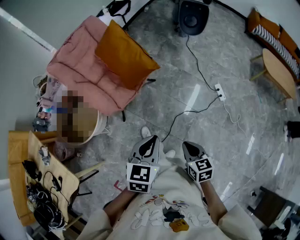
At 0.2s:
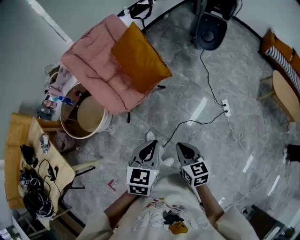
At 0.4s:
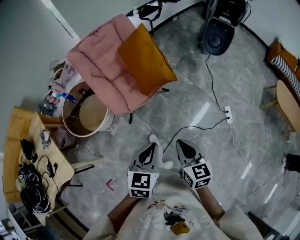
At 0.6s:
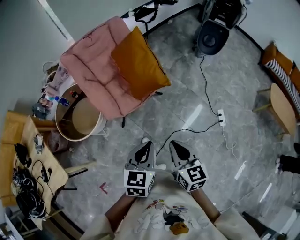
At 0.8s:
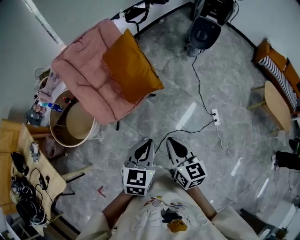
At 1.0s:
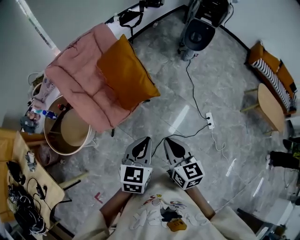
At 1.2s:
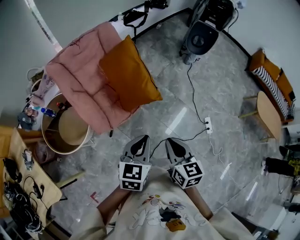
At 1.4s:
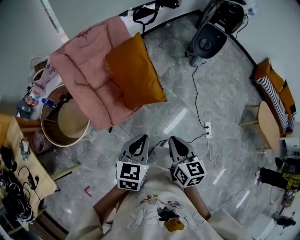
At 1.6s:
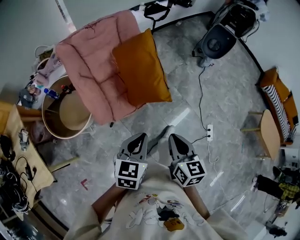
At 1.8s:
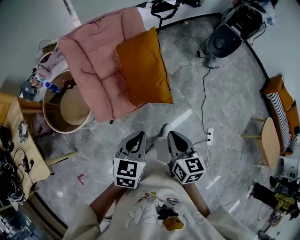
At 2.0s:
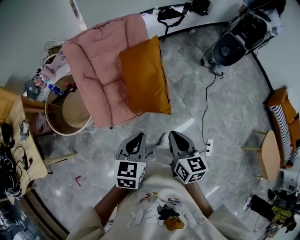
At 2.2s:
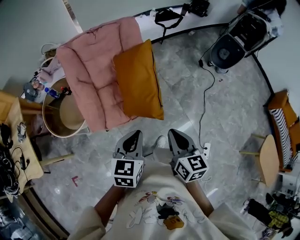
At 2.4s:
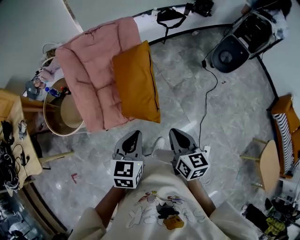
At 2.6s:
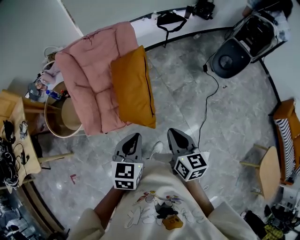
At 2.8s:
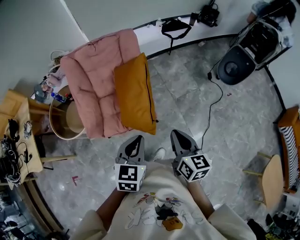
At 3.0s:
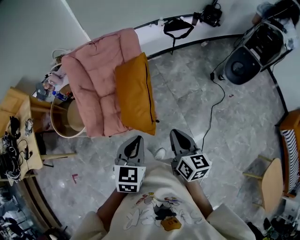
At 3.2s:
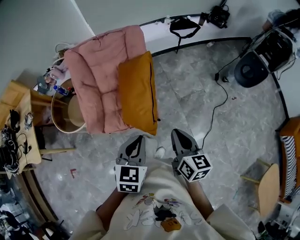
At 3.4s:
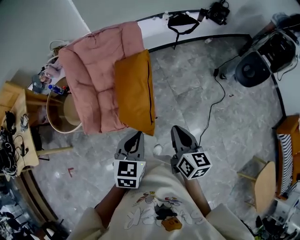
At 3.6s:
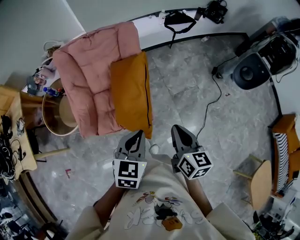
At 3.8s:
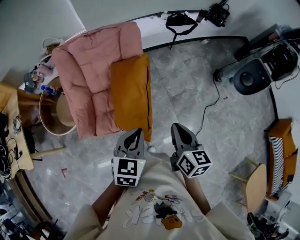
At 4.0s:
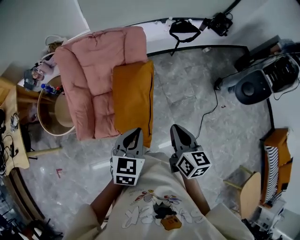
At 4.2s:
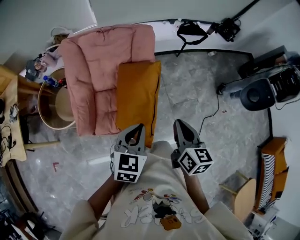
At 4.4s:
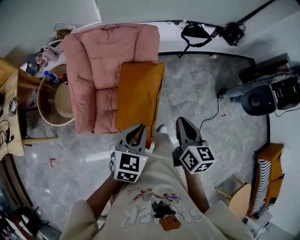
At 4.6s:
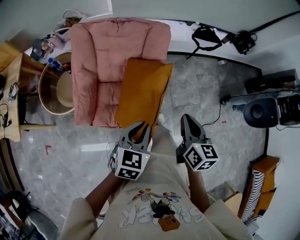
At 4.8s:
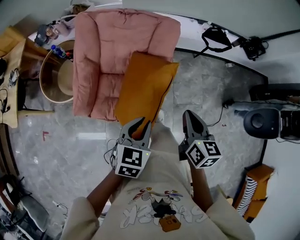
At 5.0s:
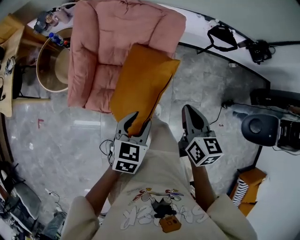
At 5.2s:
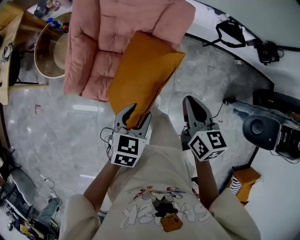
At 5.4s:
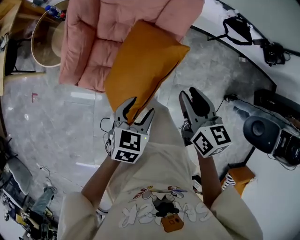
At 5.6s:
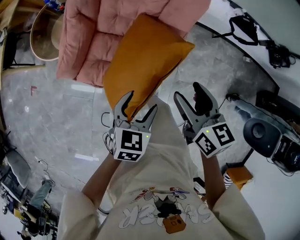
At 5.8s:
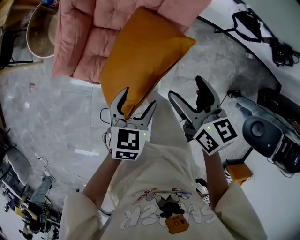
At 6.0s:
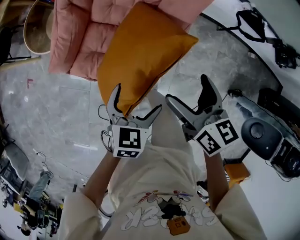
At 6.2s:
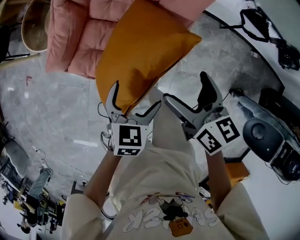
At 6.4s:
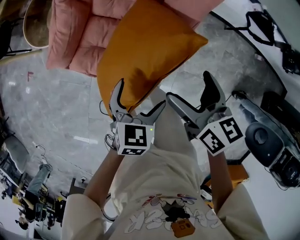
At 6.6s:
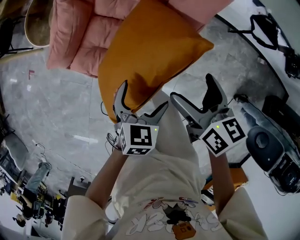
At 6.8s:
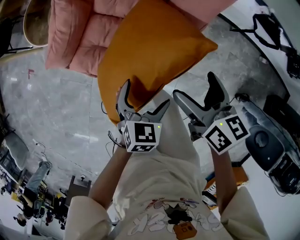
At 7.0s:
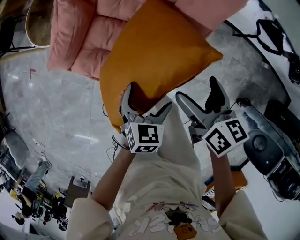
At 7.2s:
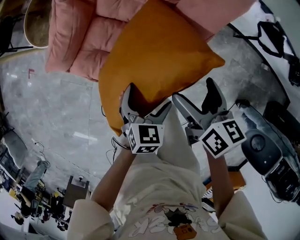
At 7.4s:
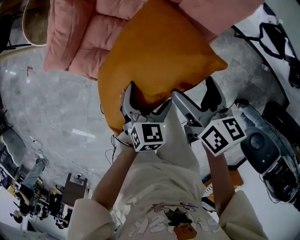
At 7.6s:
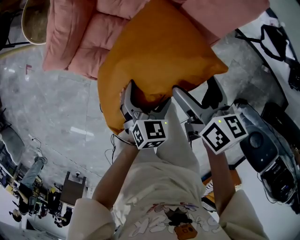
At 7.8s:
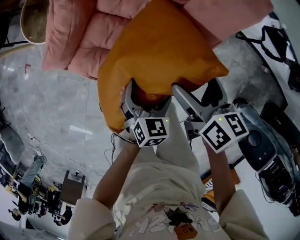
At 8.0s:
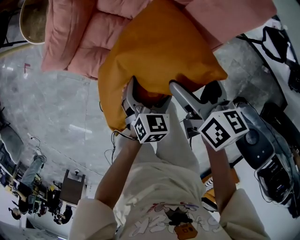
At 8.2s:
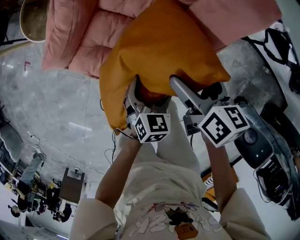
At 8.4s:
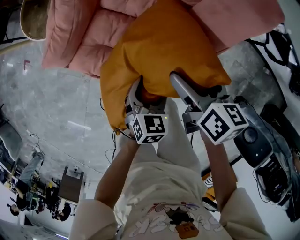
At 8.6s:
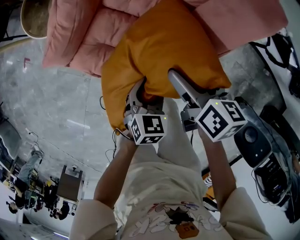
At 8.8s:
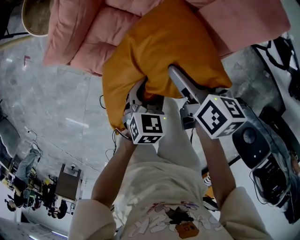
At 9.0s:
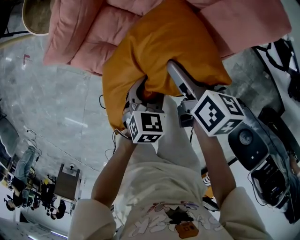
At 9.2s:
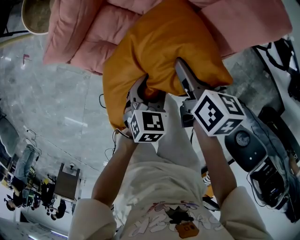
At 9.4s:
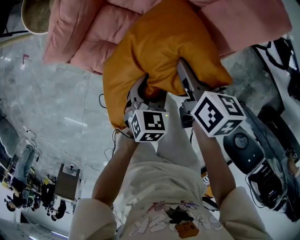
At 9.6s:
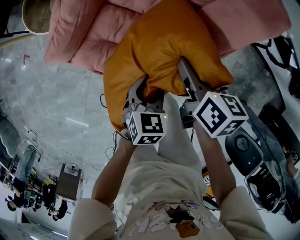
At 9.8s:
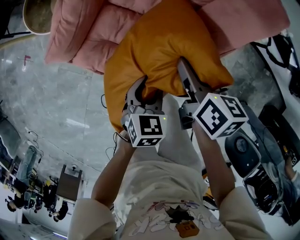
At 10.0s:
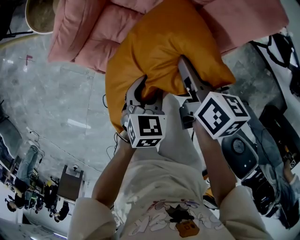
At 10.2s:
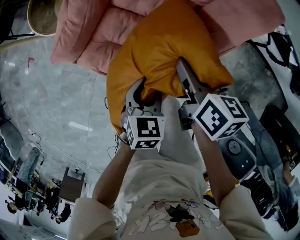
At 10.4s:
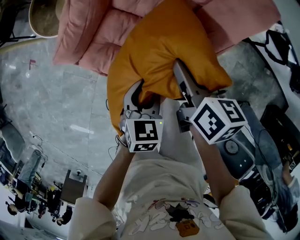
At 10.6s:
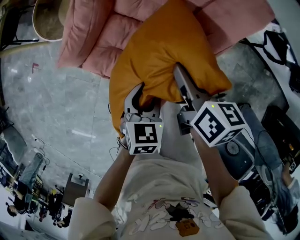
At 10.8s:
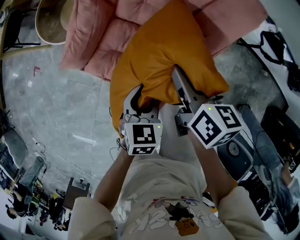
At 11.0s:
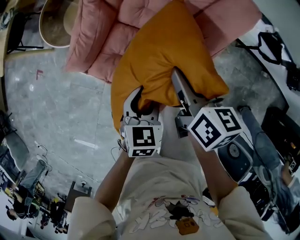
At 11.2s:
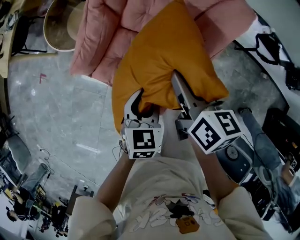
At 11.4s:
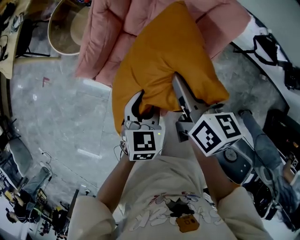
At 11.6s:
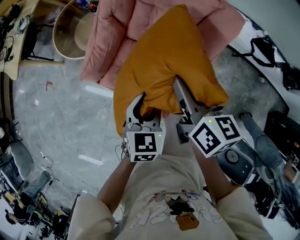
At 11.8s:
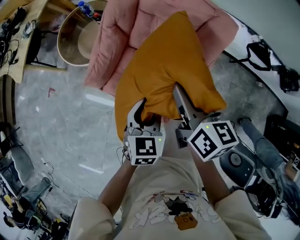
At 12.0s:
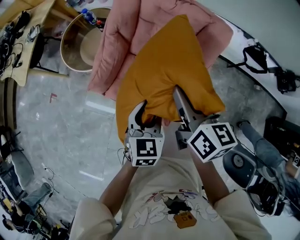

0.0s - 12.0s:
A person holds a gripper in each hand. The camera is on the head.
0.0s - 1.6s: The right gripper shifts approximately 30 cm forward and upward; the left gripper moves forward, roughly 25 cm.
1.6s - 3.0s: The right gripper goes approximately 30 cm forward and to the right, and rotates approximately 20 degrees. The left gripper moves to the right and forward, about 25 cm, and swivels approximately 30 degrees.
3.0s - 4.4s: The two grippers go about 15 cm forward.
4.4s - 6.0s: The left gripper goes about 20 cm downward, changes its angle by about 30 degrees, and opens up, while the right gripper changes place by roughly 20 cm, changes its angle by approximately 40 degrees, and opens its fingers.
6.0s - 7.6s: The right gripper shifts some 15 cm downward and forward. Meanwhile the left gripper shifts approximately 15 cm downward.
7.6s - 9.0s: The right gripper shifts approximately 10 cm forward, to the left and downward. Meanwhile the left gripper shifts by approximately 5 cm, and closes up.
9.0s - 10.4s: Both grippers travel together upward, approximately 5 cm. The right gripper closes up.
10.4s - 12.0s: The right gripper shifts about 20 cm upward. The left gripper shifts about 20 cm upward and to the left.

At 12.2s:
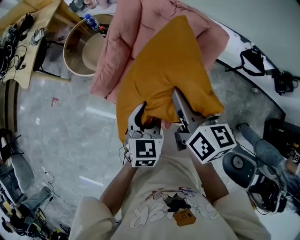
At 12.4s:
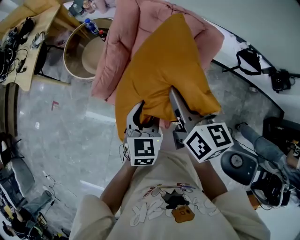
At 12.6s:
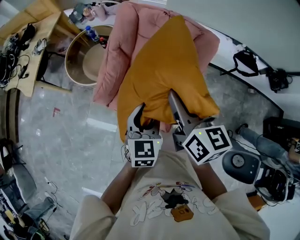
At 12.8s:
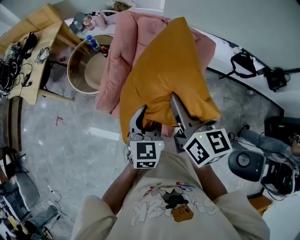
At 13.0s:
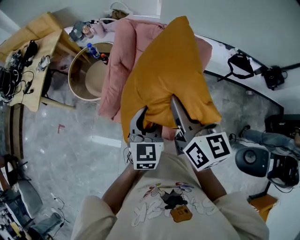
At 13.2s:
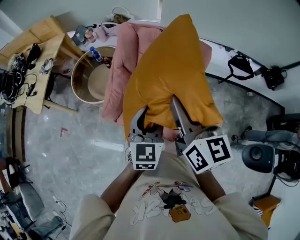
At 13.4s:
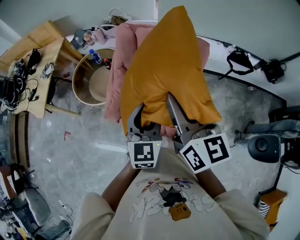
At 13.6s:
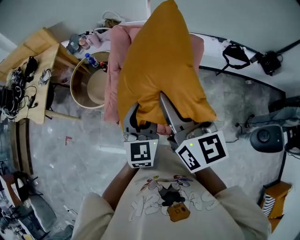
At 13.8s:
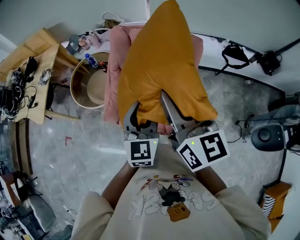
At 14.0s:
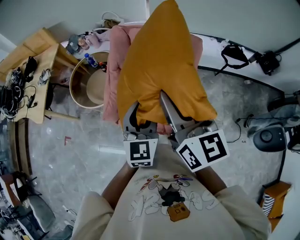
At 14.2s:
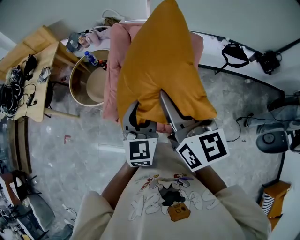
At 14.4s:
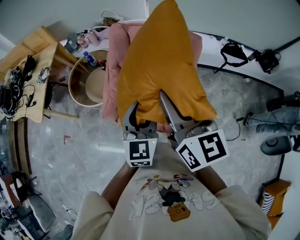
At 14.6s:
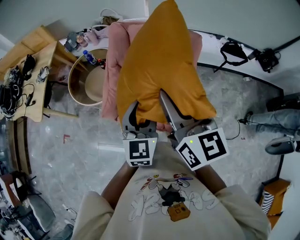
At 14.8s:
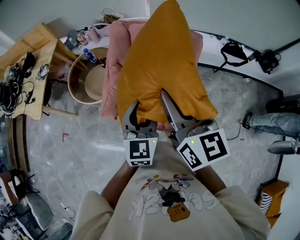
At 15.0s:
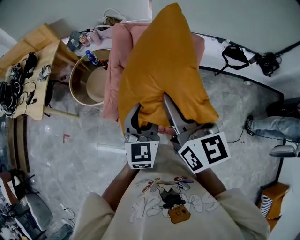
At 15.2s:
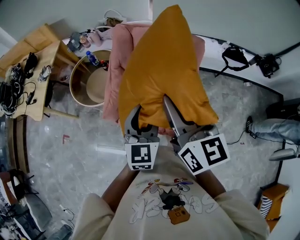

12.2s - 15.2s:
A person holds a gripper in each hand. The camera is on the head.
12.2s - 13.8s: The right gripper goes about 20 cm upward and backward, and rotates roughly 30 degrees. Meanwhile the left gripper moves upward, some 15 cm, and swivels approximately 20 degrees.
13.8s - 15.2s: The grippers make only small movements.

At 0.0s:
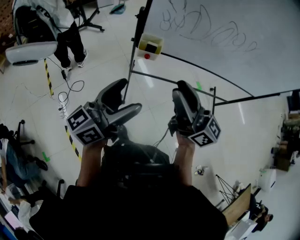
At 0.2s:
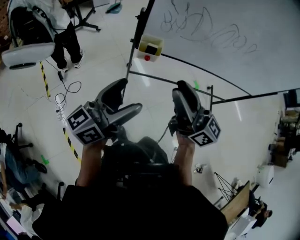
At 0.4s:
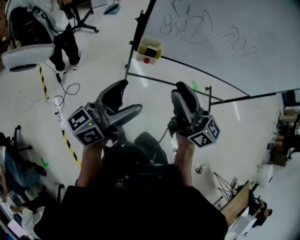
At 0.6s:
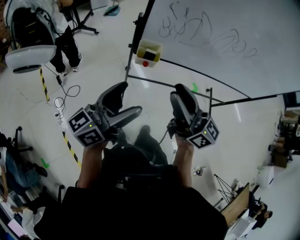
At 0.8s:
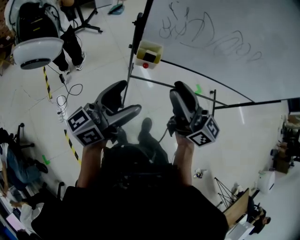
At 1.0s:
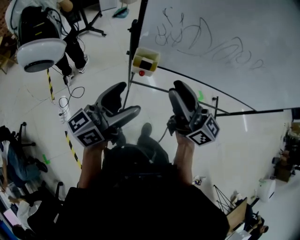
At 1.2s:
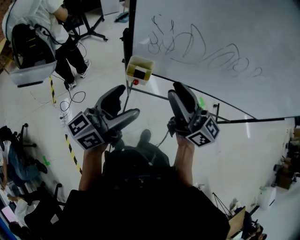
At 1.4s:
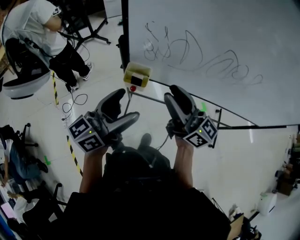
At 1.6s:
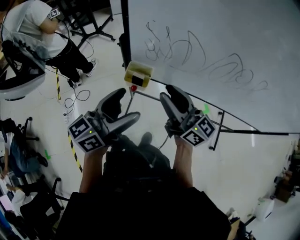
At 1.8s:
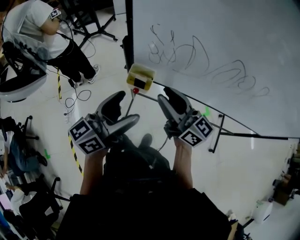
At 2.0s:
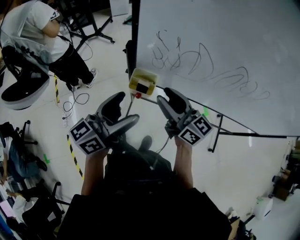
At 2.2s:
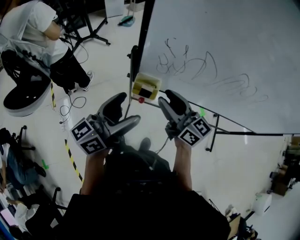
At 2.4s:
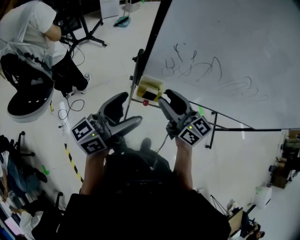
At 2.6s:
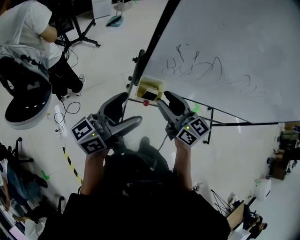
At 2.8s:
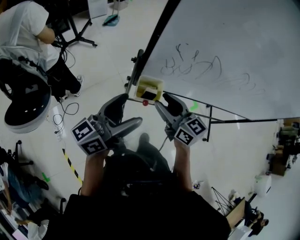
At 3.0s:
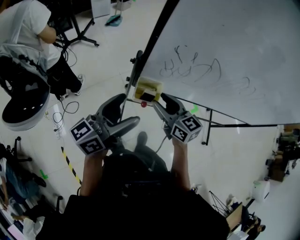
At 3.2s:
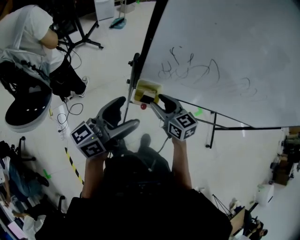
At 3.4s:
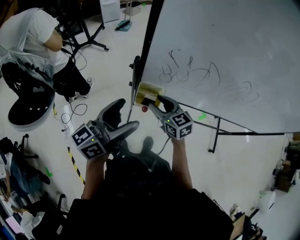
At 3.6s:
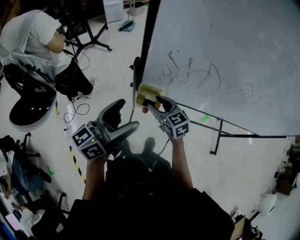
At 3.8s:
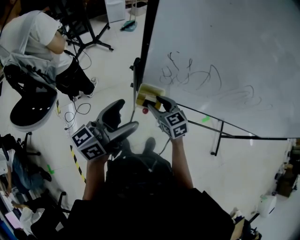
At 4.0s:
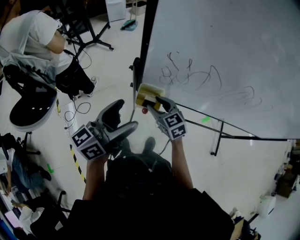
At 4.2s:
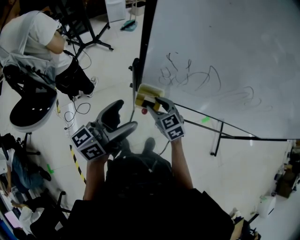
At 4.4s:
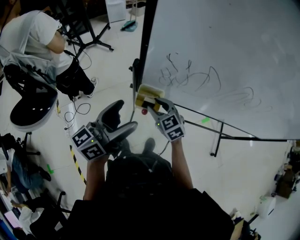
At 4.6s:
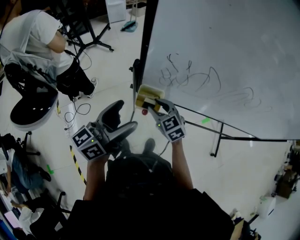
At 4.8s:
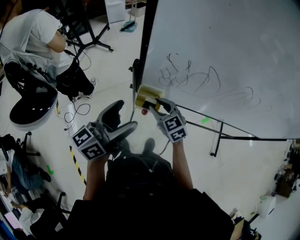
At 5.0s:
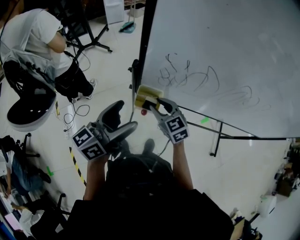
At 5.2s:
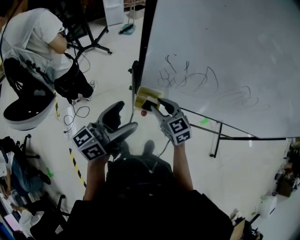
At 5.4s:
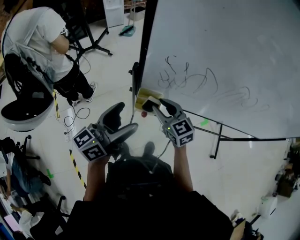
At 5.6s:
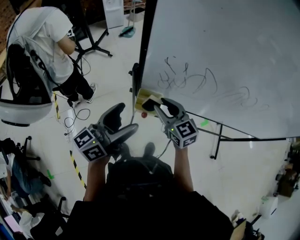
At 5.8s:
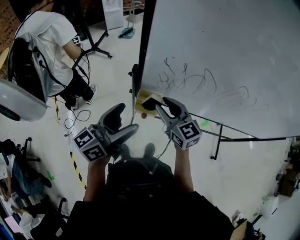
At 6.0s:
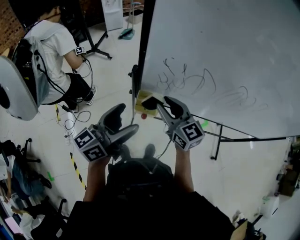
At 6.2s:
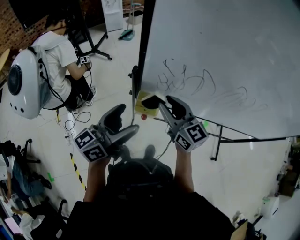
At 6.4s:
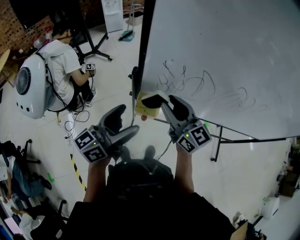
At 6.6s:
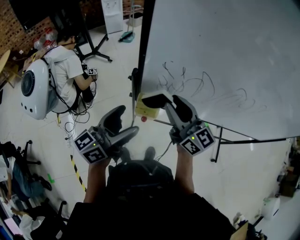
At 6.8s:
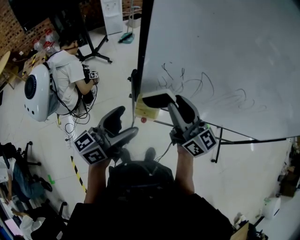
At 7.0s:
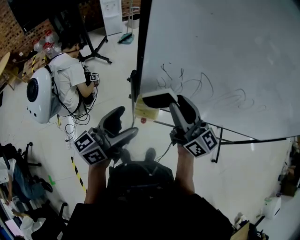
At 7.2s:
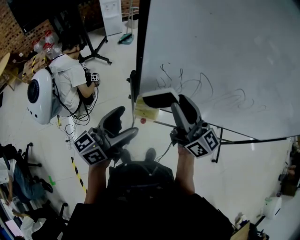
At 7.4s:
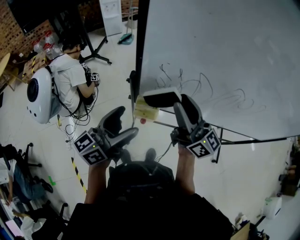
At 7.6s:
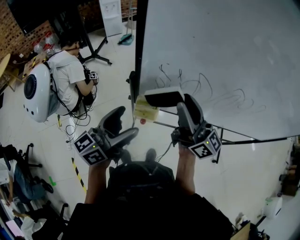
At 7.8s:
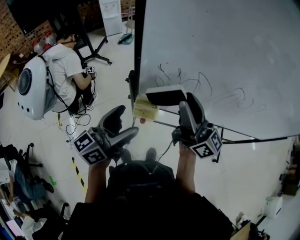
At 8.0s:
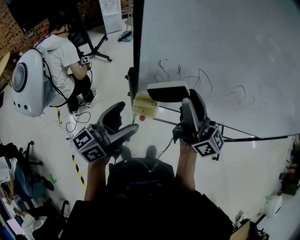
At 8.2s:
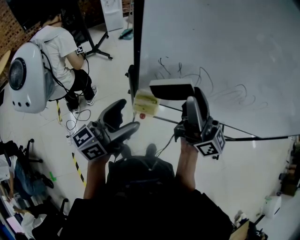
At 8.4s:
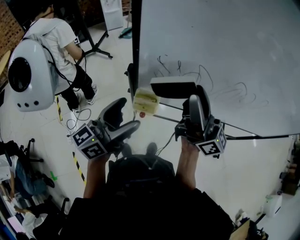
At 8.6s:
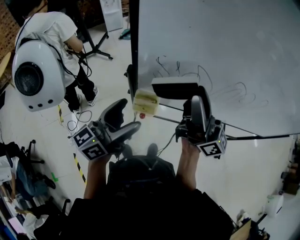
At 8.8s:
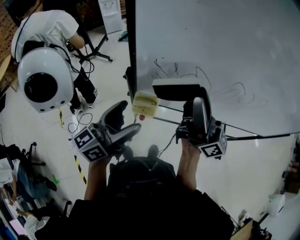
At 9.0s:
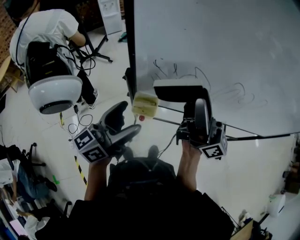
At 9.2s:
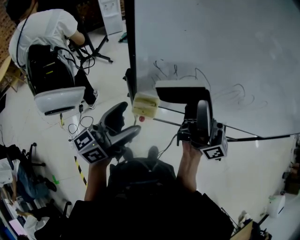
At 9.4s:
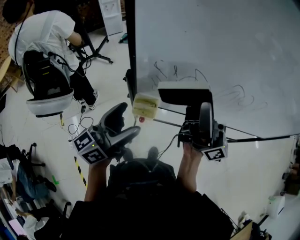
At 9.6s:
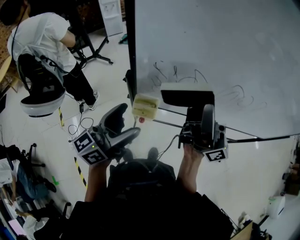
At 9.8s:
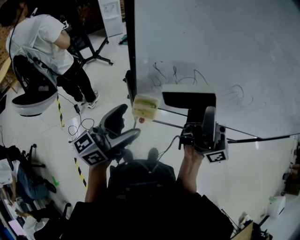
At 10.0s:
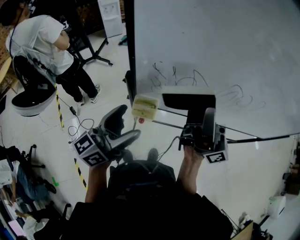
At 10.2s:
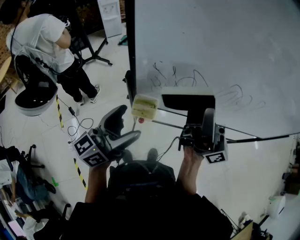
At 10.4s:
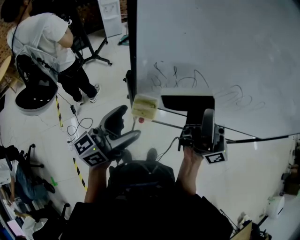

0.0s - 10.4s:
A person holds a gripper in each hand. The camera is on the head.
0.0s - 1.4s: The right gripper shifts roughly 15 cm forward; the left gripper shifts approximately 15 cm forward and to the right.
1.4s - 3.0s: The right gripper shifts some 20 cm downward, to the left and forward, and tilts its fingers about 30 degrees downward, while the left gripper travels to the left and forward by some 10 cm.
3.0s - 4.4s: The right gripper is displaced downward by roughly 10 cm, and changes its angle by approximately 30 degrees.
4.4s - 6.0s: The right gripper travels upward by about 15 cm, and rotates approximately 30 degrees.
6.0s - 7.4s: The right gripper is displaced upward and to the right by approximately 15 cm, and turns by roughly 40 degrees.
7.4s - 9.0s: The right gripper is displaced upward and to the right by approximately 10 cm, and swivels roughly 20 degrees.
9.0s - 10.4s: The grippers make only small movements.
